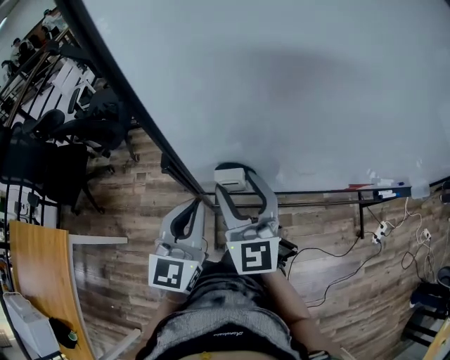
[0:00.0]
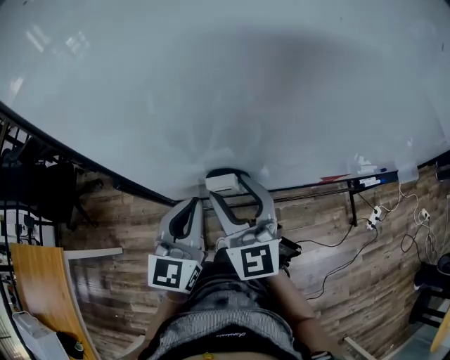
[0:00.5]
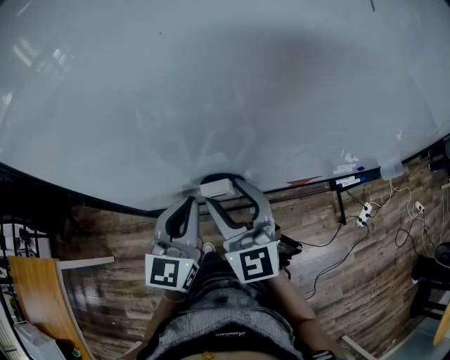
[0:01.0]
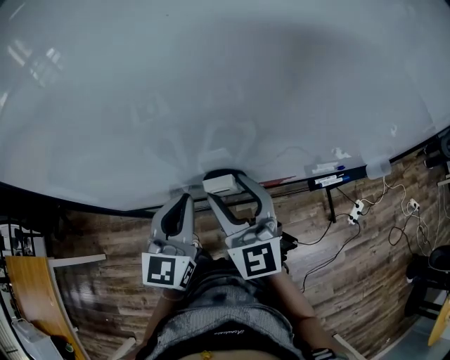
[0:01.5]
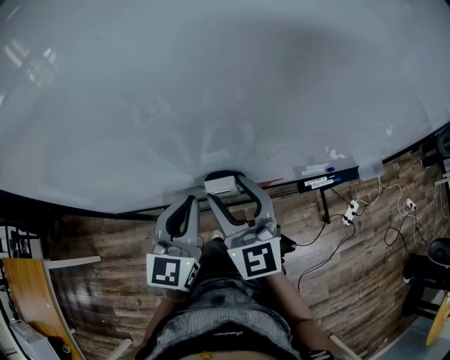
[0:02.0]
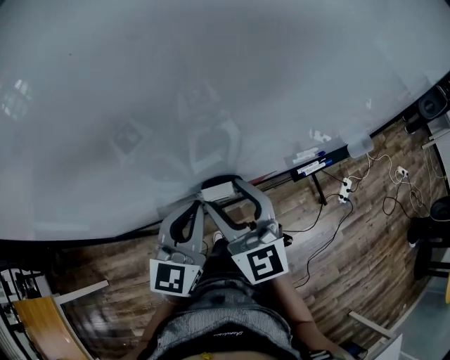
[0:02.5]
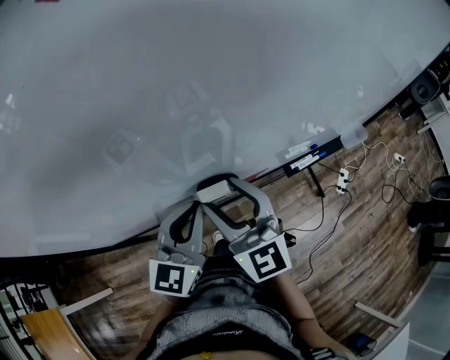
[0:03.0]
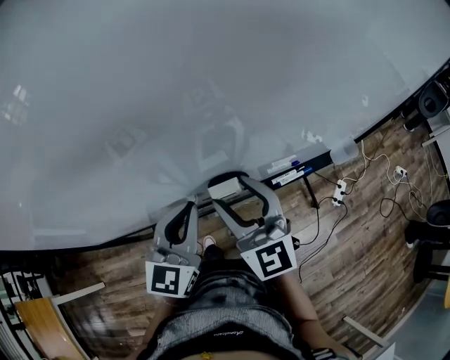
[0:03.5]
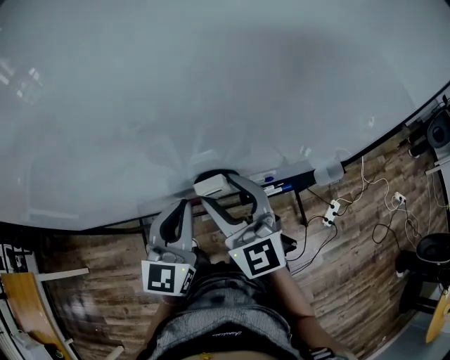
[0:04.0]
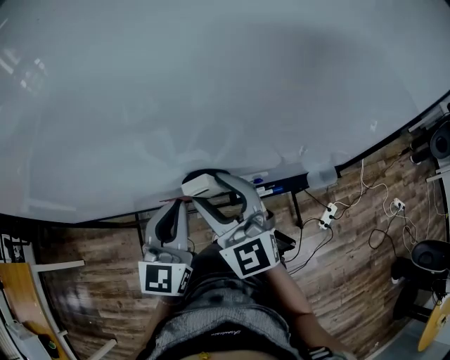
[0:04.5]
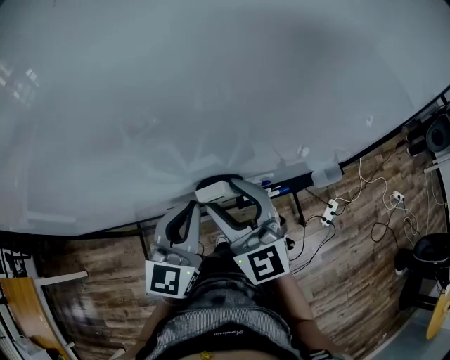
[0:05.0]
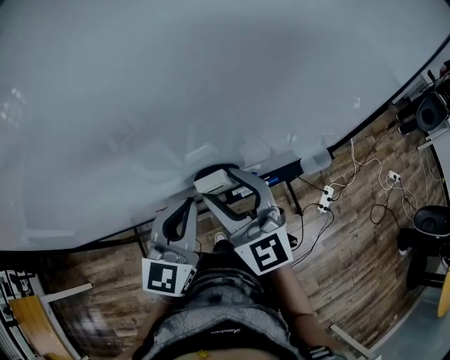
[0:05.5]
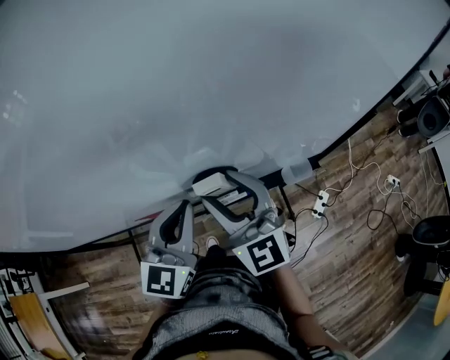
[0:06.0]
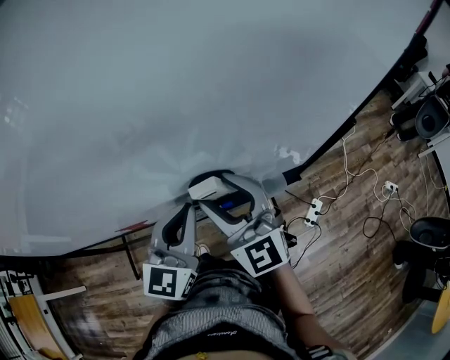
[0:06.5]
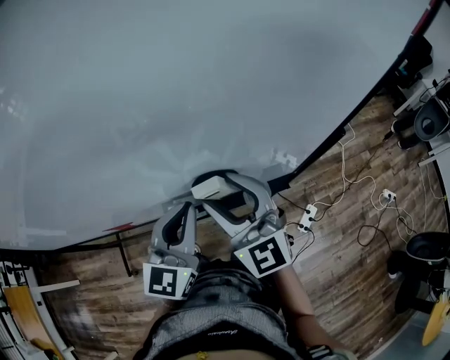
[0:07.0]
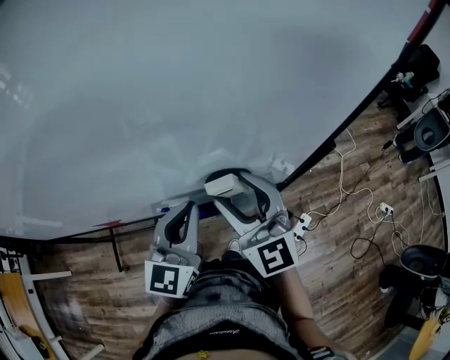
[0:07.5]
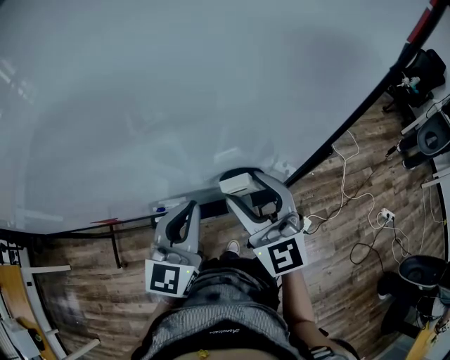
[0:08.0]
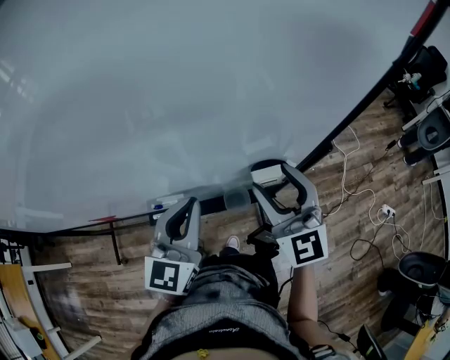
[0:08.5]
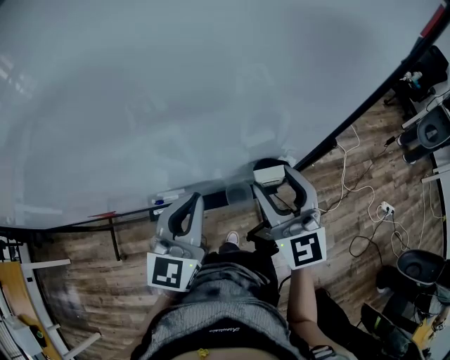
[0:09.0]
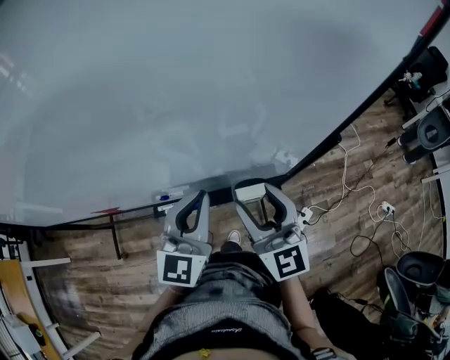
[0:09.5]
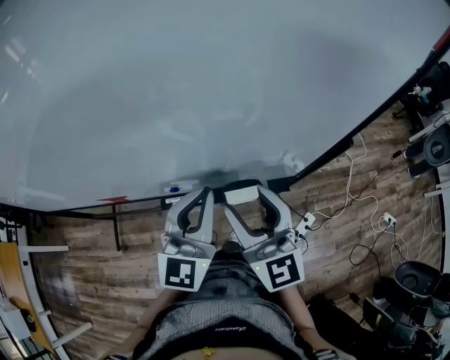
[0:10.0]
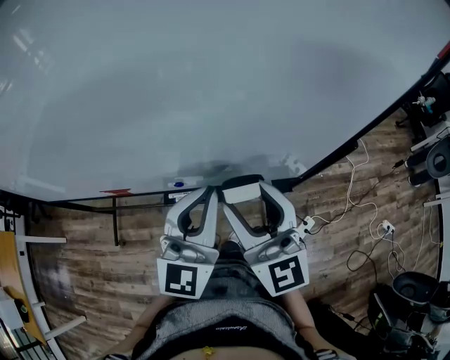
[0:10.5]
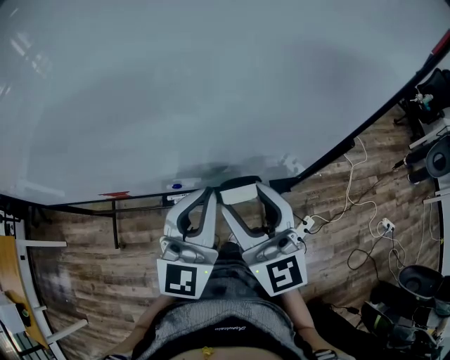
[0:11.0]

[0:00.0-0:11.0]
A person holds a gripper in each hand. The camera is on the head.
0:00.0 to 0:02.0: The two grippers go about 35 cm to the right.
0:02.0 to 0:03.5: Both grippers travel together to the right, about 15 cm.
0:03.5 to 0:05.5: The grippers both shift to the right by roughly 15 cm.
0:05.5 to 0:07.5: Both grippers travel together to the right, some 30 cm.
0:07.5 to 0:09.0: The right gripper travels to the right by about 10 cm.
0:09.0 to 0:11.0: The left gripper moves upward, approximately 5 cm; the right gripper shifts roughly 15 cm to the left and backward.

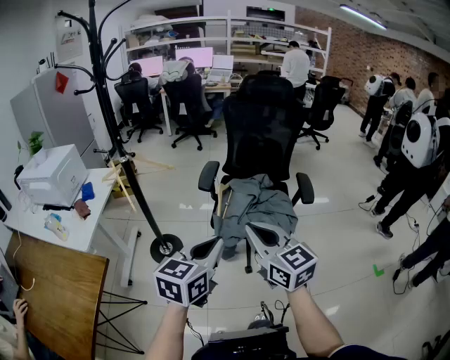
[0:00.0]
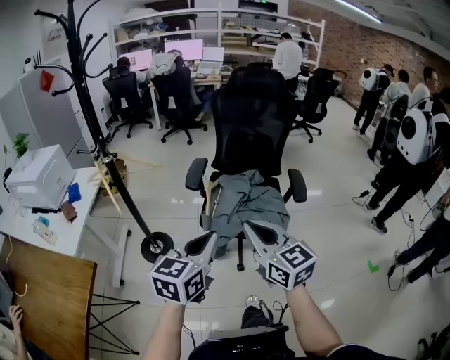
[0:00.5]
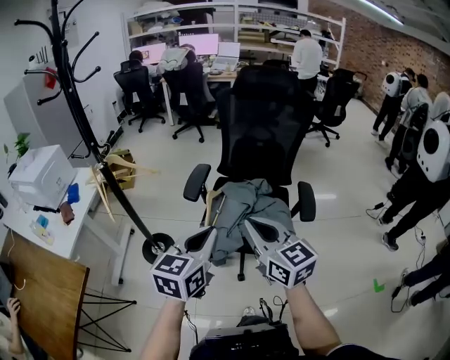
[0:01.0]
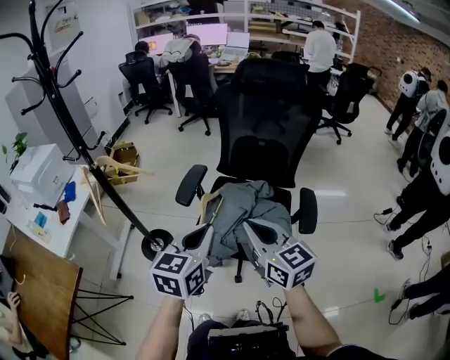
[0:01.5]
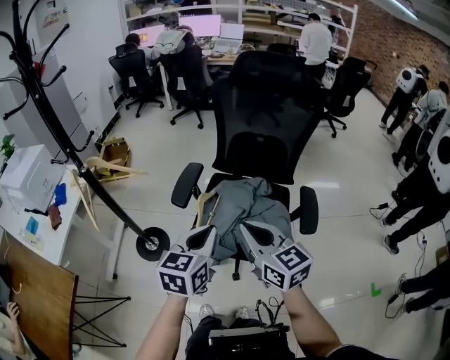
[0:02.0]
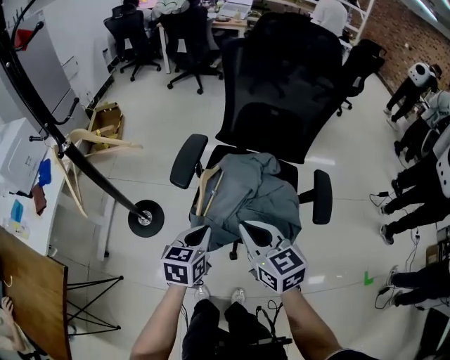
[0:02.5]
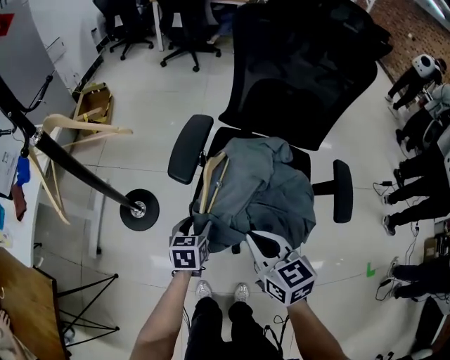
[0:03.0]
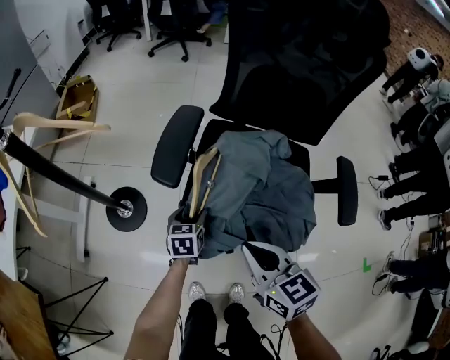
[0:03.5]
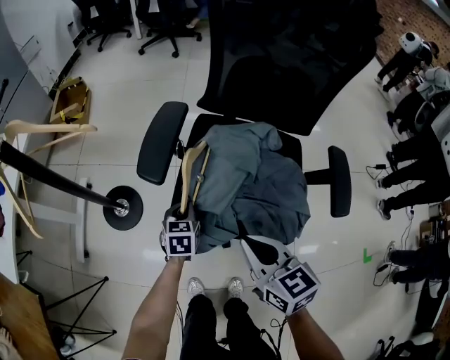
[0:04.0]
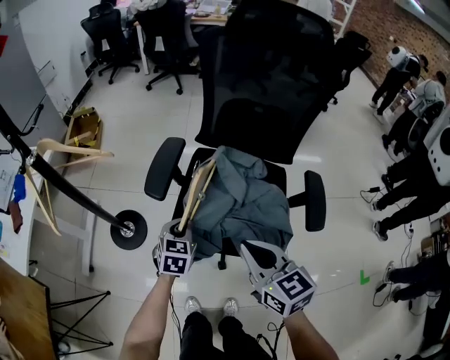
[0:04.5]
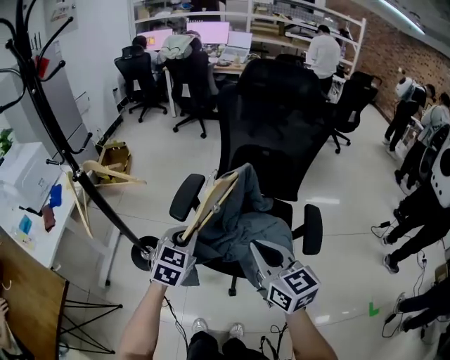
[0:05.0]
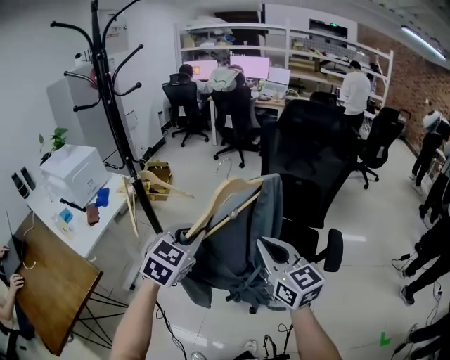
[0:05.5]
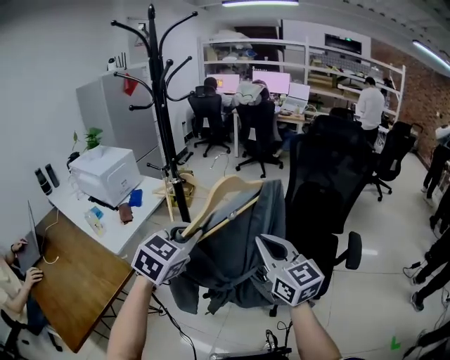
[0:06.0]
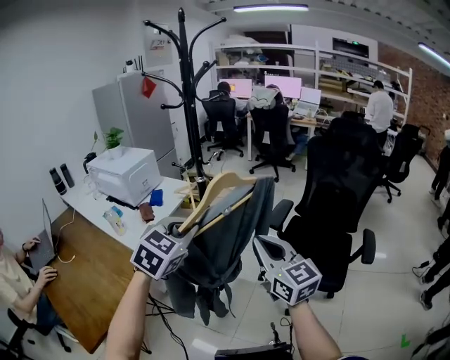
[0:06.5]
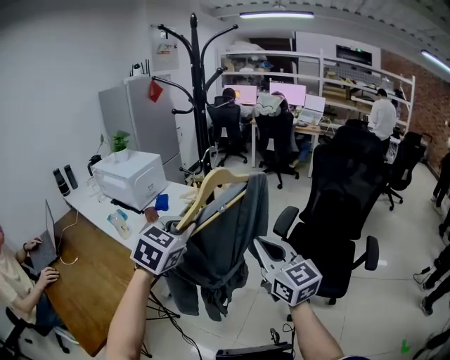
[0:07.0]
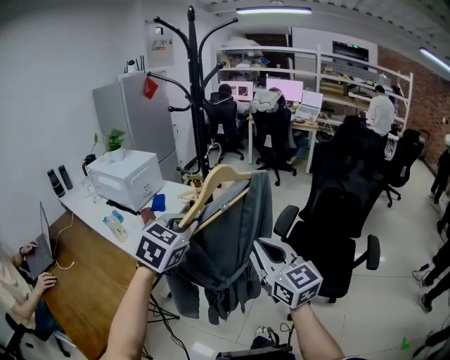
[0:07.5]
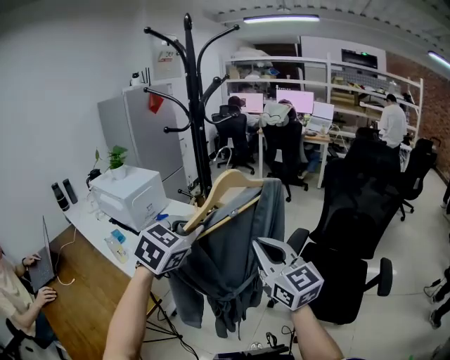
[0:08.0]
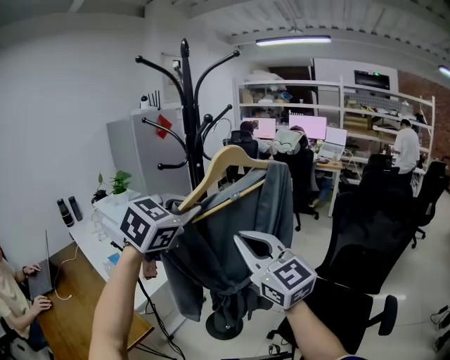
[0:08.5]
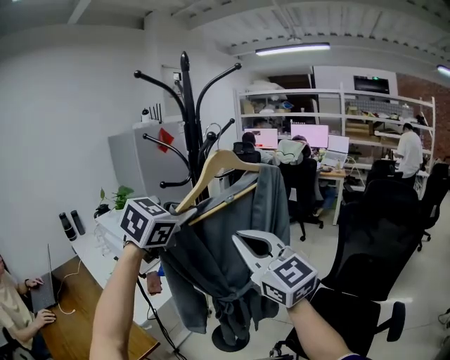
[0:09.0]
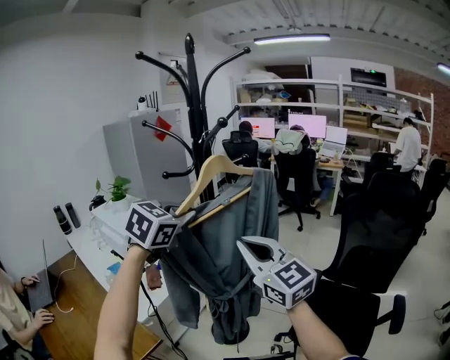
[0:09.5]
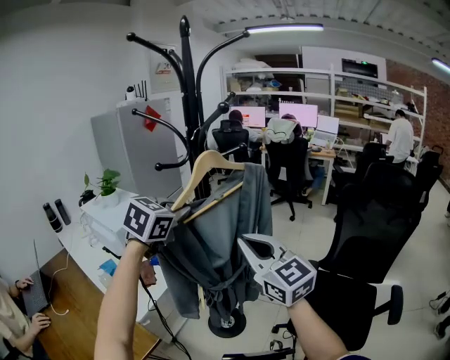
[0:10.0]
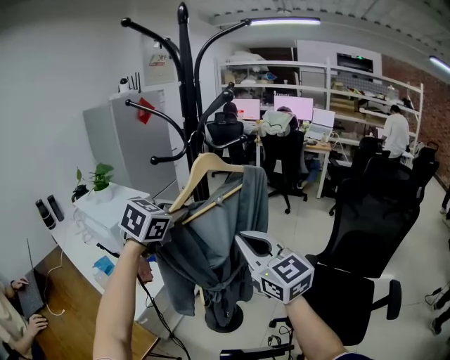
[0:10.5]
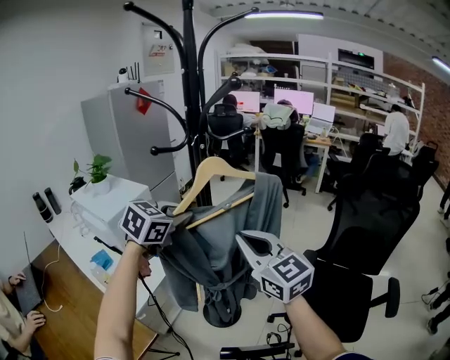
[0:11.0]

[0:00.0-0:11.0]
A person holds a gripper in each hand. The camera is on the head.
0:00.0 to 0:02.0: Both grippers move forward and to the right, approximately 25 cm.
0:02.0 to 0:03.5: The left gripper moves downward, about 40 cm, turns by some 30 degrees, and opens its fingers, while the right gripper goes approximately 20 cm downward.
0:03.5 to 0:05.5: The left gripper is displaced upward by some 50 cm, rotates roughly 40 degrees, and closes, while the right gripper is displaced upward by approximately 25 cm, and changes its angle by about 30 degrees.
0:05.5 to 0:07.5: Both grippers move to the left, roughly 30 cm.
0:07.5 to 0:09.0: The two grippers go approximately 25 cm forward and upward. The right gripper changes its angle by some 20 degrees.
0:09.0 to 0:11.0: Both grippers travel together downward and forward, some 15 cm.

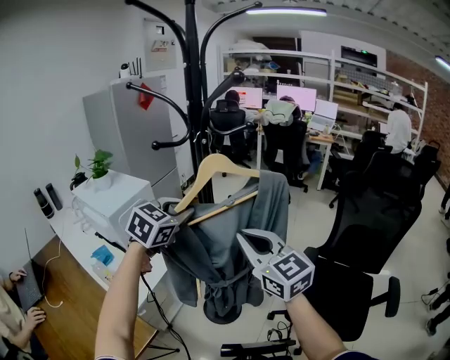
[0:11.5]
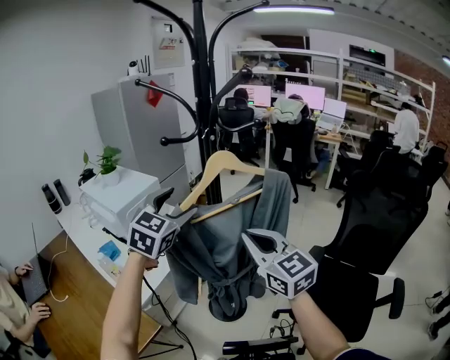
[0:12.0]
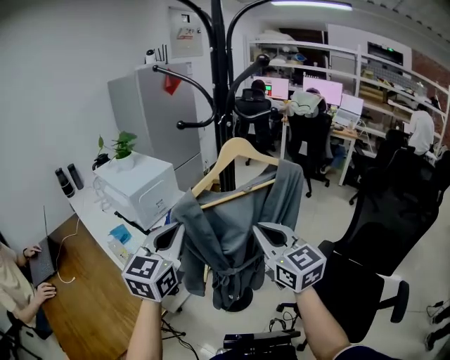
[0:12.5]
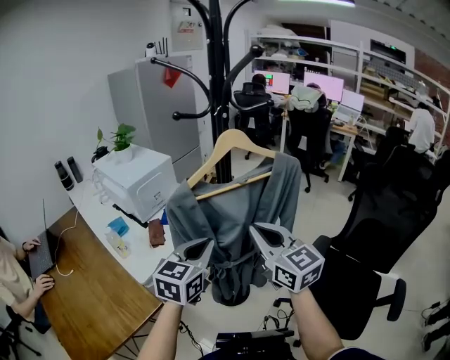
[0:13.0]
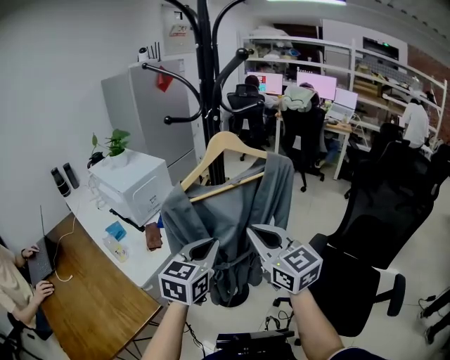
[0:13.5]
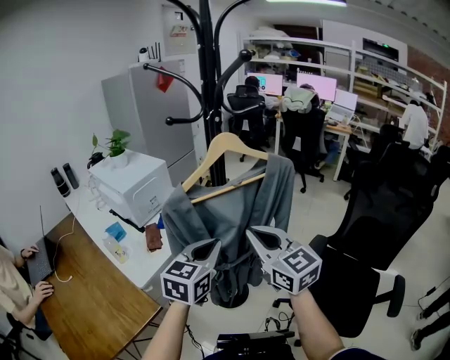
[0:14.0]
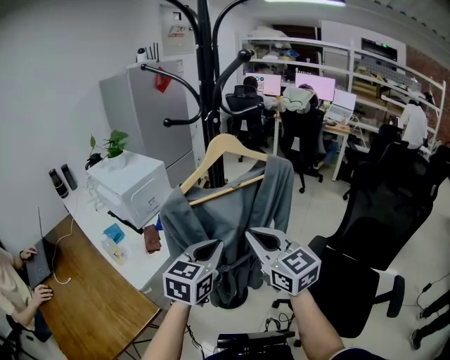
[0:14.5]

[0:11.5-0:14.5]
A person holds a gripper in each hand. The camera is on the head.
0:11.5 to 0:13.0: The left gripper moves backward and downward, about 15 cm, rotates about 30 degrees, and opens, then closes again.
0:13.0 to 0:14.5: The grippers stay close to where they were, moving slightly.

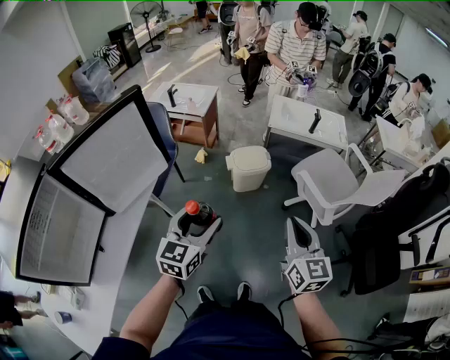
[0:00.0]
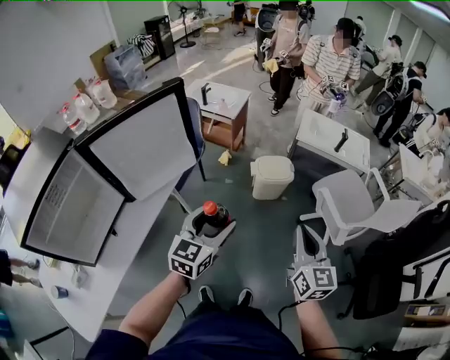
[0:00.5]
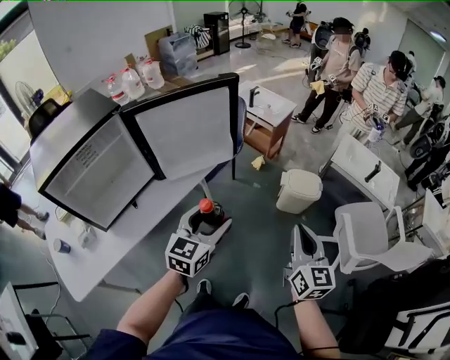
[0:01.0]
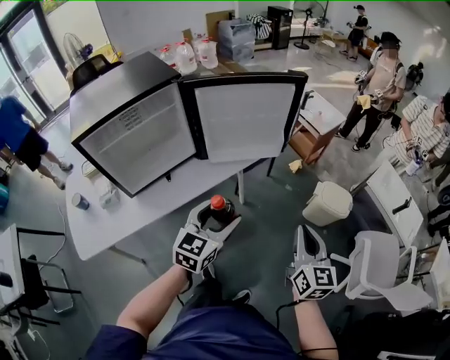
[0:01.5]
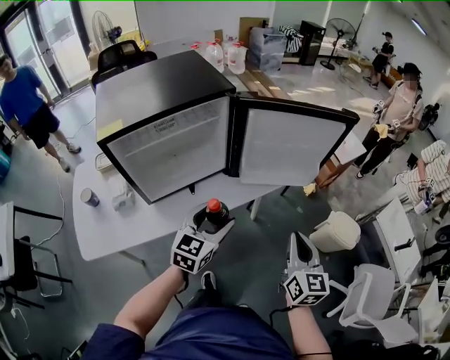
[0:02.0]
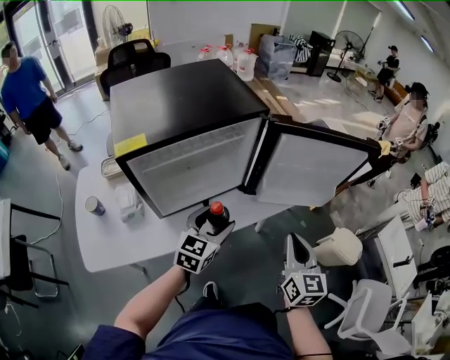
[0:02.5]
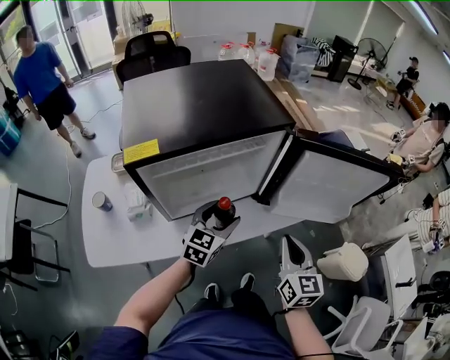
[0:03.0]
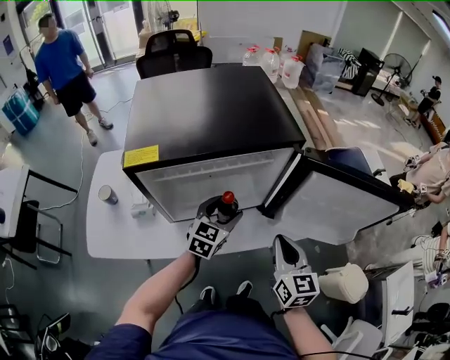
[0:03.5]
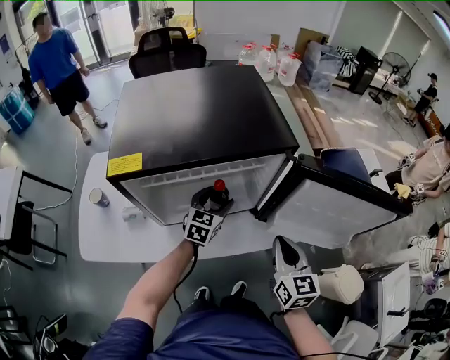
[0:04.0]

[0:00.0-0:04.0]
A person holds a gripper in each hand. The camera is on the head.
0:00.0 to 0:02.0: The left gripper moves roughly 35 cm, and rotates roughly 40 degrees. Meanwhile the right gripper moves roughly 35 cm, and turns by approximately 40 degrees.
0:02.0 to 0:04.0: Both grippers travel together forward and to the left, about 25 cm. The right gripper rotates some 20 degrees; the left gripper turns by some 20 degrees.
